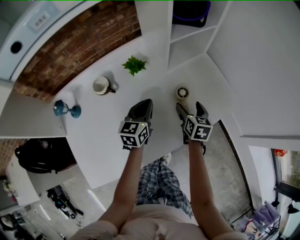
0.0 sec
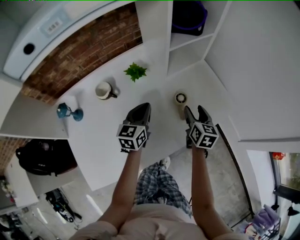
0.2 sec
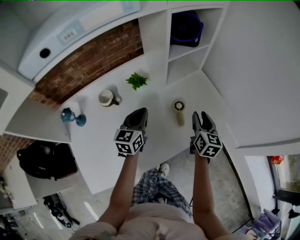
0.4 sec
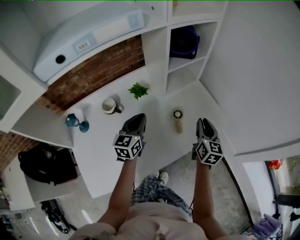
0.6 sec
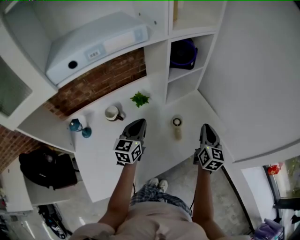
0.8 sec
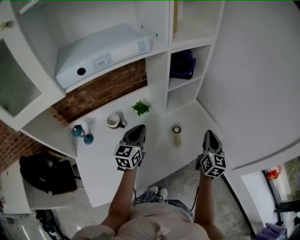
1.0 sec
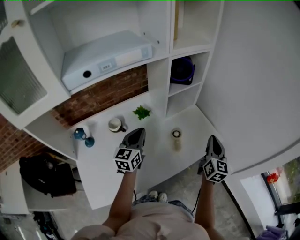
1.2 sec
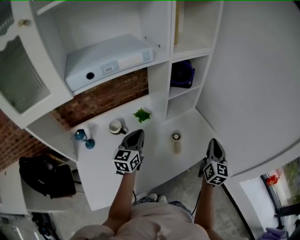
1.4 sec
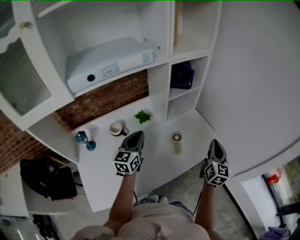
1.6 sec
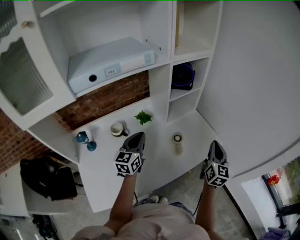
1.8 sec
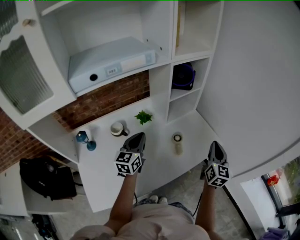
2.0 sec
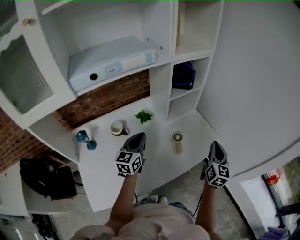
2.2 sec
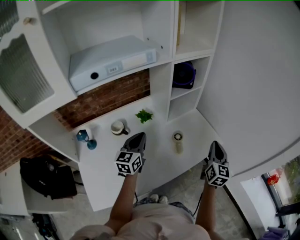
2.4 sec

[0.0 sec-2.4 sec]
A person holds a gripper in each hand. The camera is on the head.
0.0 sec to 1.2 sec: The left gripper is displaced upward by some 15 cm; the right gripper heads upward and to the right, covering roughly 25 cm, points its fingers approximately 30 degrees further upward, and closes up.
1.2 sec to 2.4 sec: The grippers make only small movements.

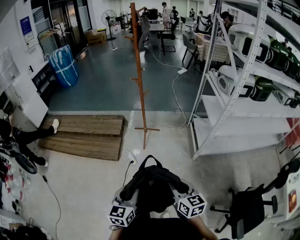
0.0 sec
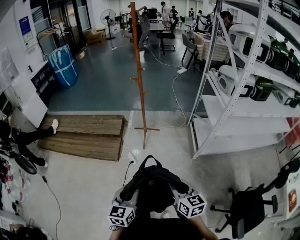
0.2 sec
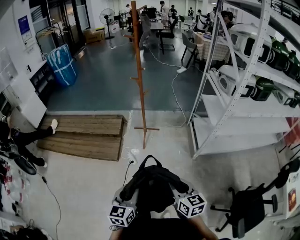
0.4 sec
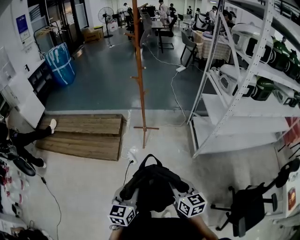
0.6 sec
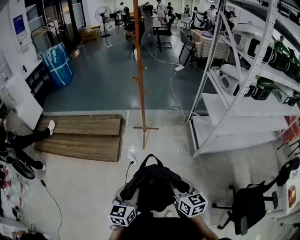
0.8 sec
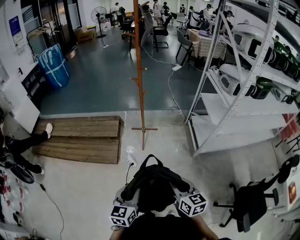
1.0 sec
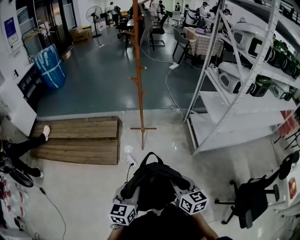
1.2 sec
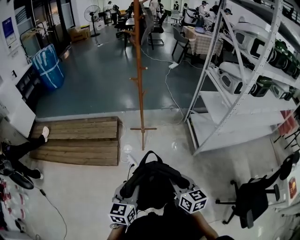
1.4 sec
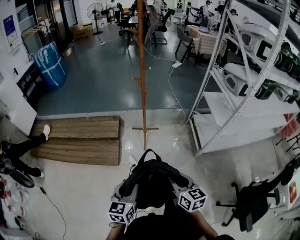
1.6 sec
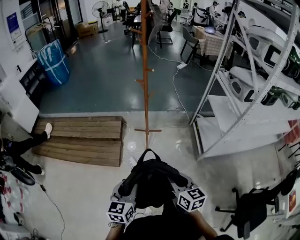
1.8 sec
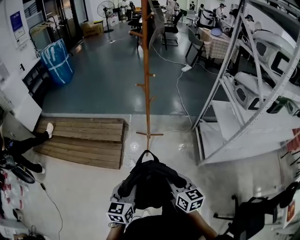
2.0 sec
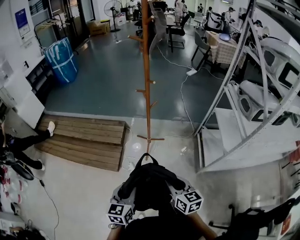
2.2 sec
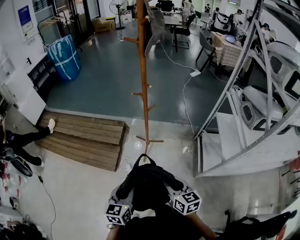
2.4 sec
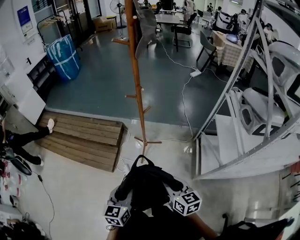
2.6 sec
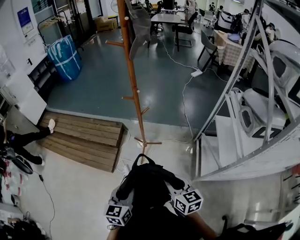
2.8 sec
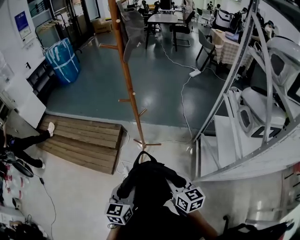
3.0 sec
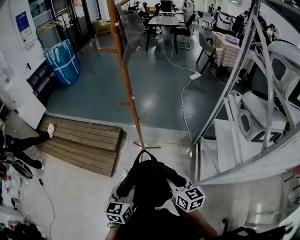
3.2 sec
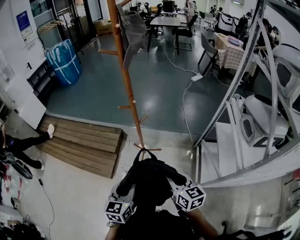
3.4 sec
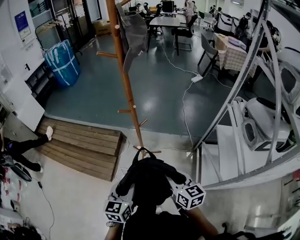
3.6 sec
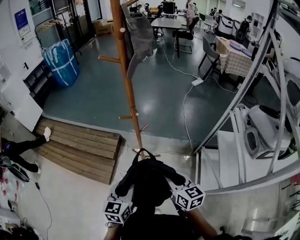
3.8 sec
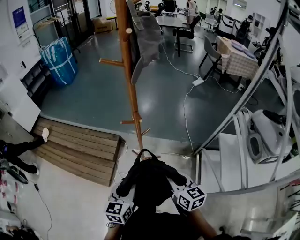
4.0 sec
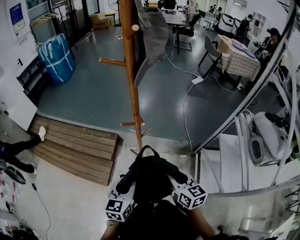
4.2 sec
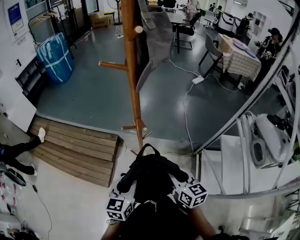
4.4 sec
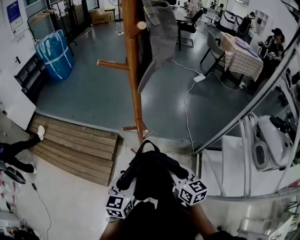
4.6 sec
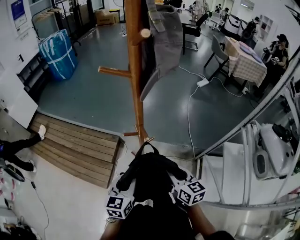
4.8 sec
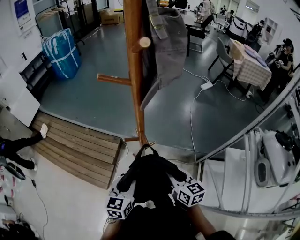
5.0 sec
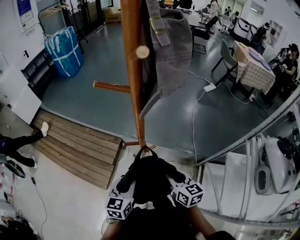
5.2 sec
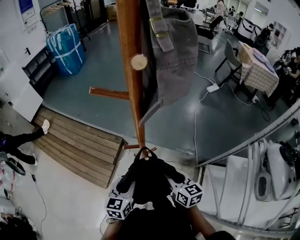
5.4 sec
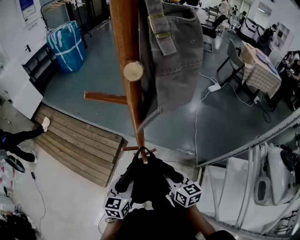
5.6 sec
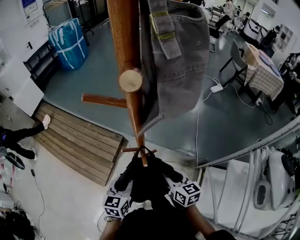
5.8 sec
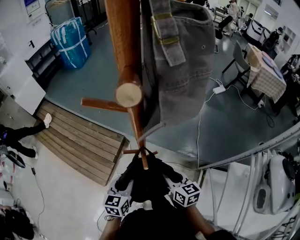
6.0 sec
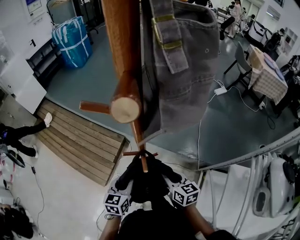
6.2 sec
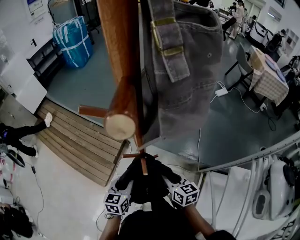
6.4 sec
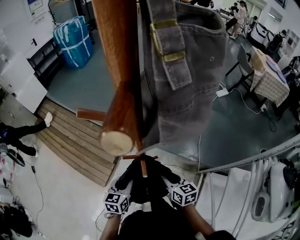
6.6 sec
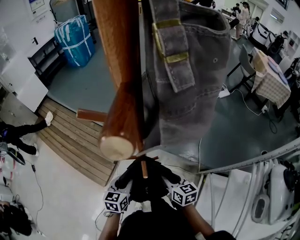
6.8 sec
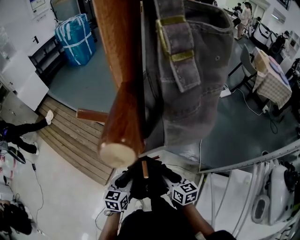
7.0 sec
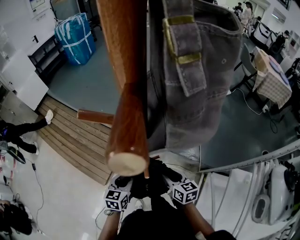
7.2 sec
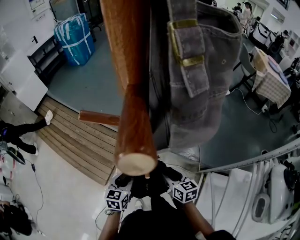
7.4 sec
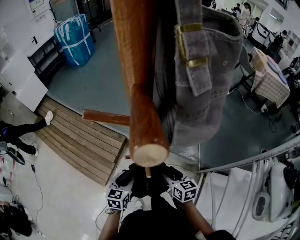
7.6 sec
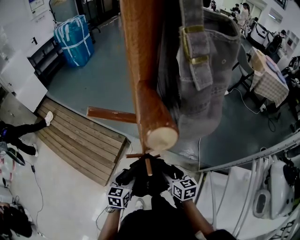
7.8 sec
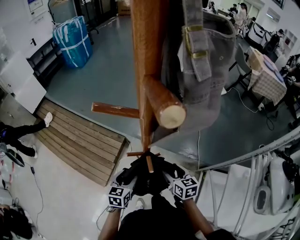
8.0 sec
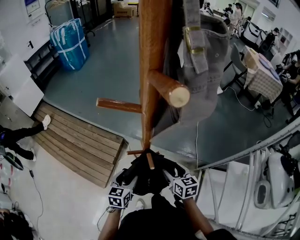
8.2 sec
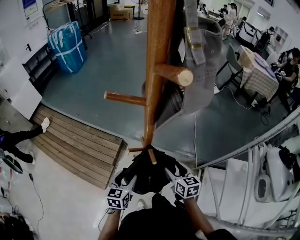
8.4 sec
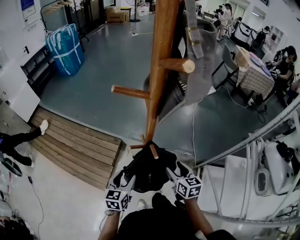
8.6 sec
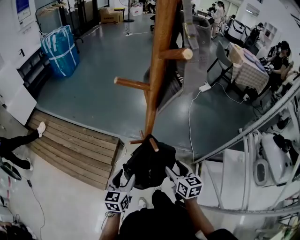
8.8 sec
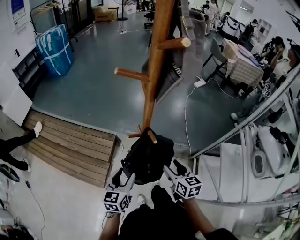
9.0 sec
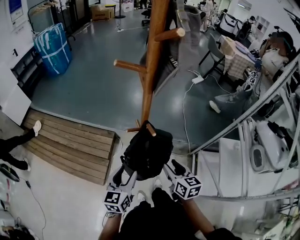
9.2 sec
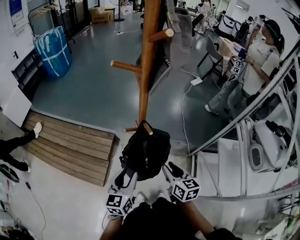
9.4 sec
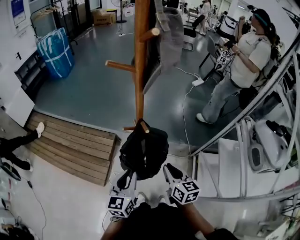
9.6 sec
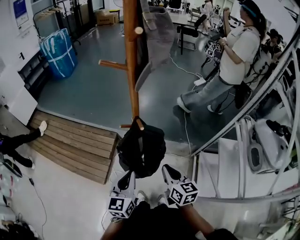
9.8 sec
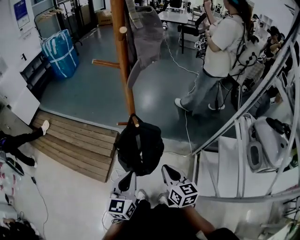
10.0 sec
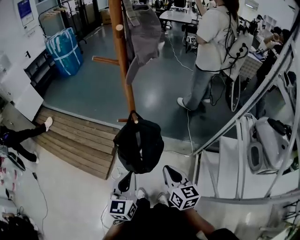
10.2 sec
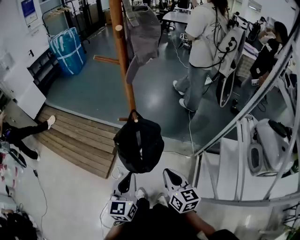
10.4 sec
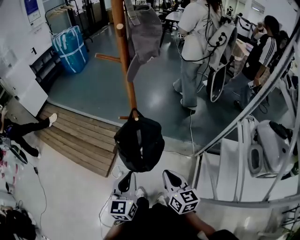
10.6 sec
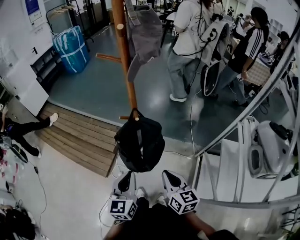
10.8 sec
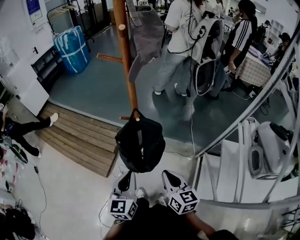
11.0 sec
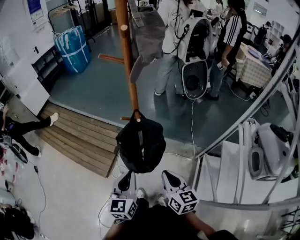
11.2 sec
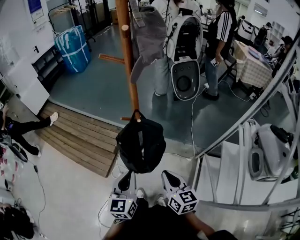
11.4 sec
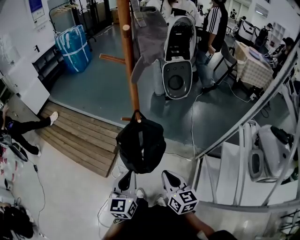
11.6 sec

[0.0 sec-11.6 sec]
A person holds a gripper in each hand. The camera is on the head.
0.0 sec to 1.4 sec: Both grippers travel together forward and to the left, some 15 cm.
1.4 sec to 2.8 sec: The two grippers go some 30 cm forward and to the right.
2.8 sec to 4.4 sec: The grippers both shift forward by some 25 cm.
4.4 sec to 5.8 sec: The left gripper moves forward and downward, roughly 15 cm; the right gripper moves forward, approximately 15 cm.
5.8 sec to 7.2 sec: The grippers both shift downward by some 5 cm.
7.2 sec to 8.8 sec: The two grippers go some 10 cm backward and upward. The left gripper opens. Meanwhile the right gripper opens its fingers.
8.8 sec to 10.2 sec: The right gripper heads backward and upward, covering about 15 cm, and closes its fingers. Meanwhile the left gripper is displaced backward, to the right and upward by approximately 20 cm, and closes its fingers.
10.2 sec to 11.6 sec: The grippers stay close to where they were, moving slightly.

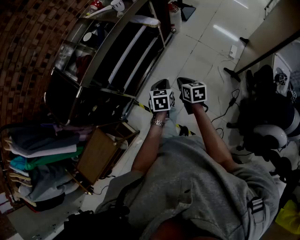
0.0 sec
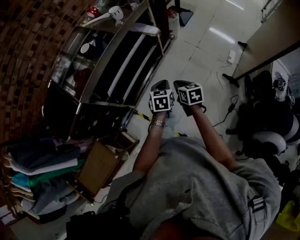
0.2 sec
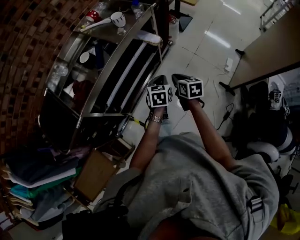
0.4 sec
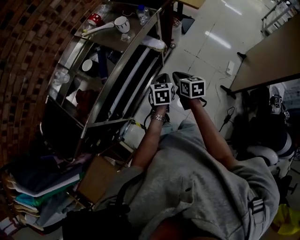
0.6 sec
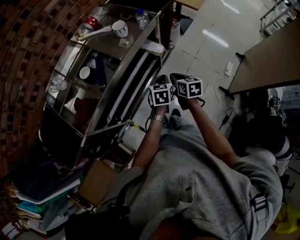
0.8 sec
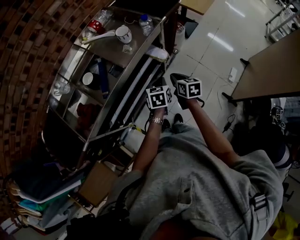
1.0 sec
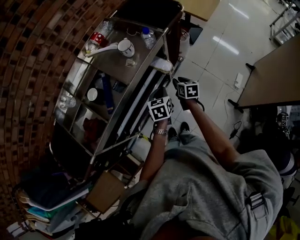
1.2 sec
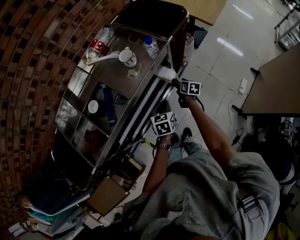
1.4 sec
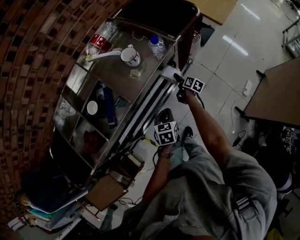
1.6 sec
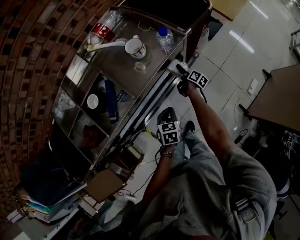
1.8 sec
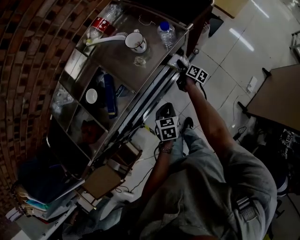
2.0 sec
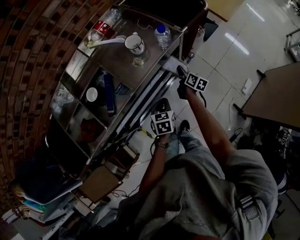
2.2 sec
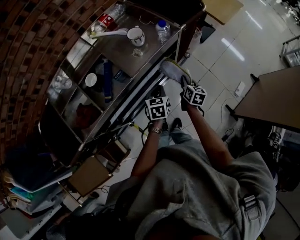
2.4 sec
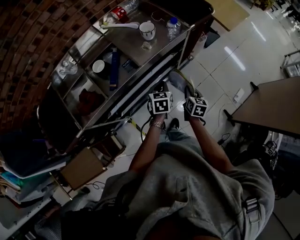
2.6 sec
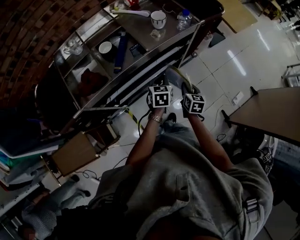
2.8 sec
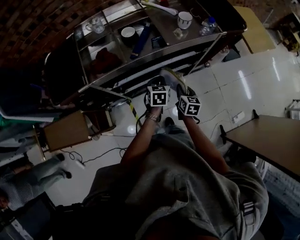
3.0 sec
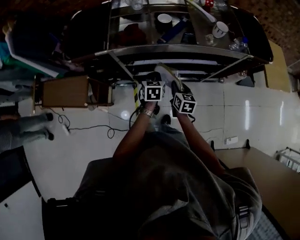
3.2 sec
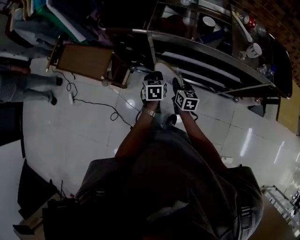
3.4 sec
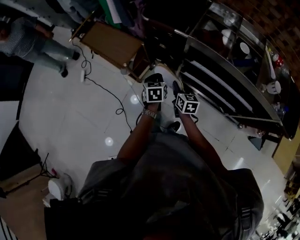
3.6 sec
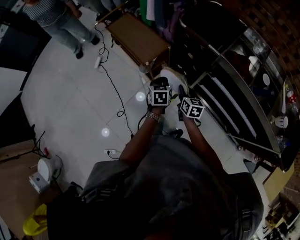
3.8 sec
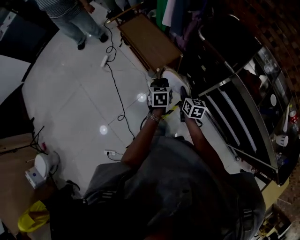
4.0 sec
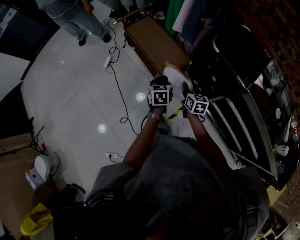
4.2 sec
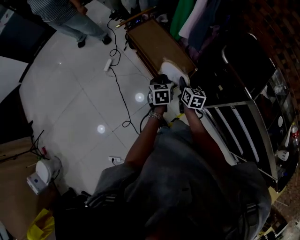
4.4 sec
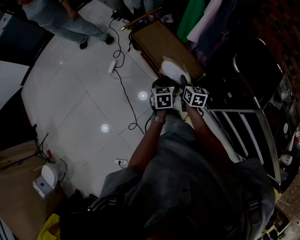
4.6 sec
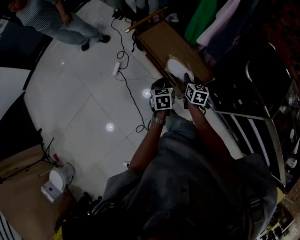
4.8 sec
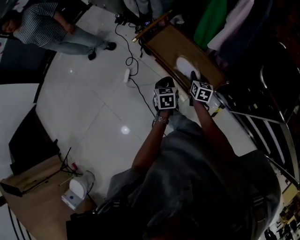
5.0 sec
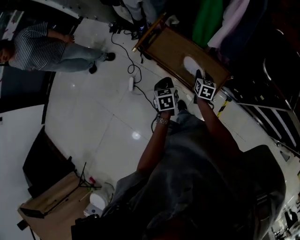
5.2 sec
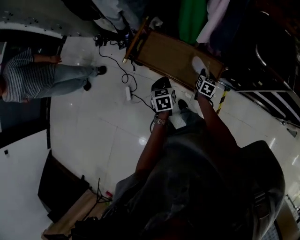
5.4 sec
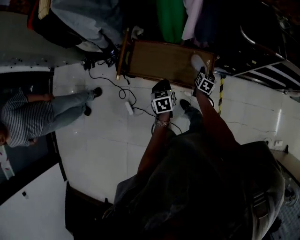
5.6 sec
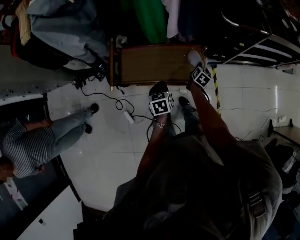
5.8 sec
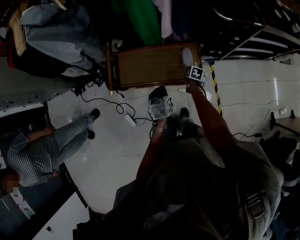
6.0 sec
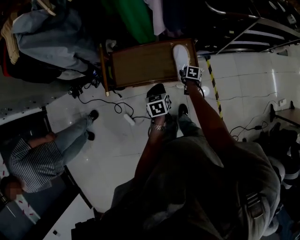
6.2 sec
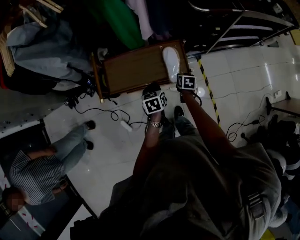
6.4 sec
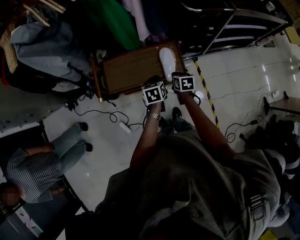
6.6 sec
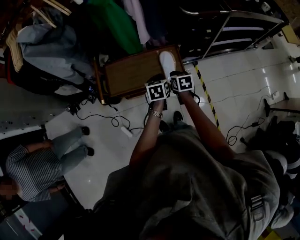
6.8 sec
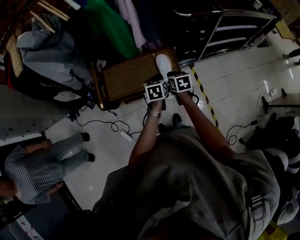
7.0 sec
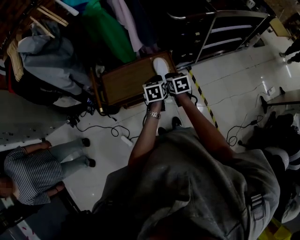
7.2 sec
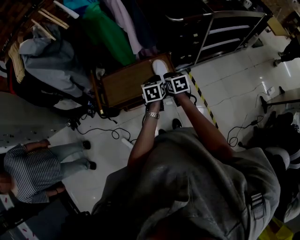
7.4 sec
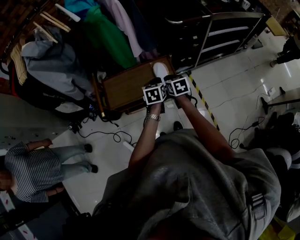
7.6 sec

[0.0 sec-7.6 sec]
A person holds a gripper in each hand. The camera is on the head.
0.0 sec to 1.6 sec: The left gripper travels forward by approximately 35 cm; the right gripper goes roughly 60 cm forward, turns by about 40 degrees, and opens.
1.6 sec to 3.0 sec: The right gripper is displaced backward, upward and to the left by approximately 35 cm, rolls counterclockwise, seen from behind, by approximately 50 degrees, and closes, while the left gripper heads to the left and backward, covering roughly 15 cm, and turns by roughly 20 degrees.
3.0 sec to 4.6 sec: The pair of grippers is taken roughly 80 cm. The right gripper turns by roughly 70 degrees. The left gripper swivels some 80 degrees.
4.6 sec to 6.0 sec: The right gripper heads downward, covering some 20 cm, angles its fingers downward, by roughly 30 degrees, and opens its fingers; the left gripper changes place by about 20 cm, and rotates some 50 degrees.
6.0 sec to 7.6 sec: The left gripper shifts about 15 cm to the right and upward; the right gripper shifts roughly 25 cm upward and backward, turns by some 30 degrees, and closes.

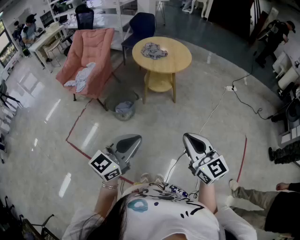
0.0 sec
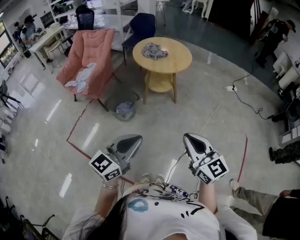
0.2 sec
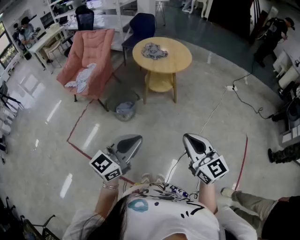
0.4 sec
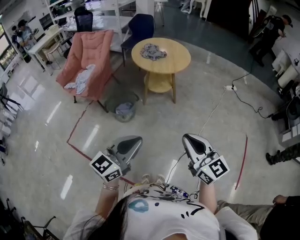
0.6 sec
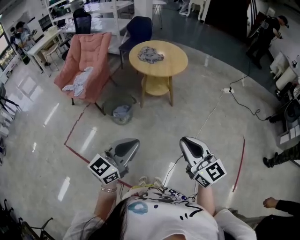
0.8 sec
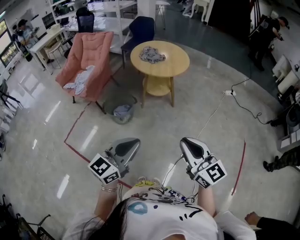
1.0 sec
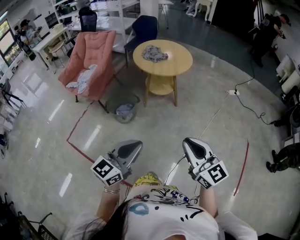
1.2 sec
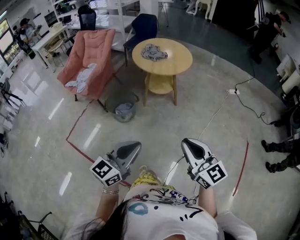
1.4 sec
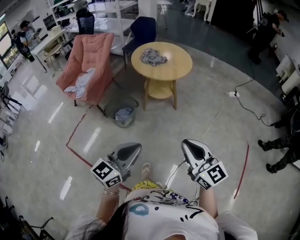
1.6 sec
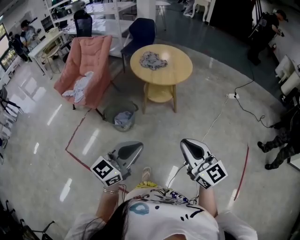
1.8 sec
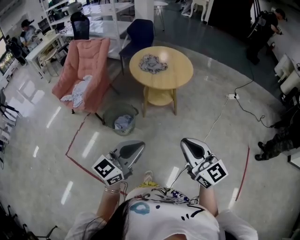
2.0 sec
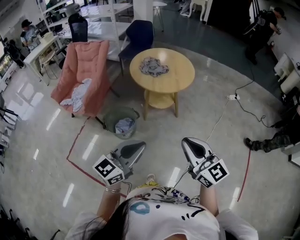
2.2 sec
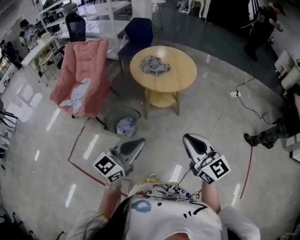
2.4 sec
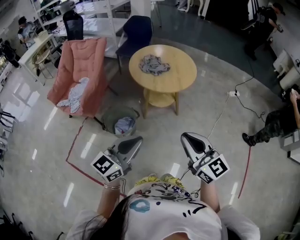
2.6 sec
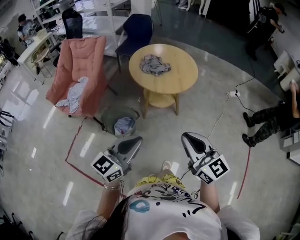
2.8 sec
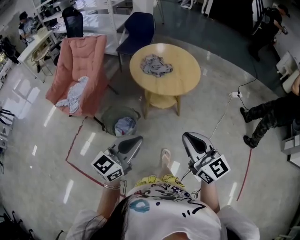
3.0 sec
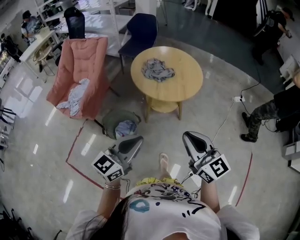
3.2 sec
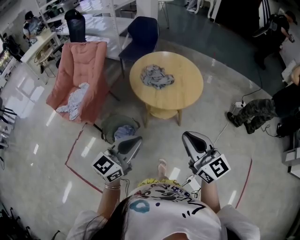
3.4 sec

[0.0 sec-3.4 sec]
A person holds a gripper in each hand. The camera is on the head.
0.0 sec to 1.6 sec: The left gripper ends up approximately 5 cm from where it was.
1.6 sec to 3.4 sec: The grippers both shift forward by roughly 35 cm.
